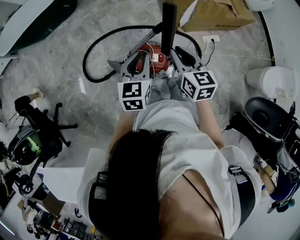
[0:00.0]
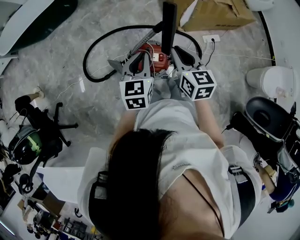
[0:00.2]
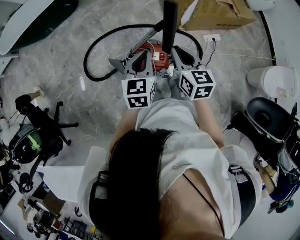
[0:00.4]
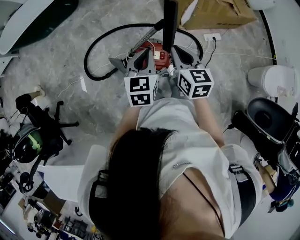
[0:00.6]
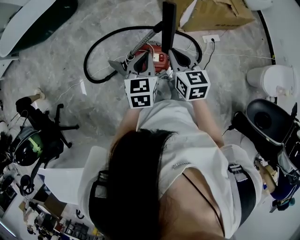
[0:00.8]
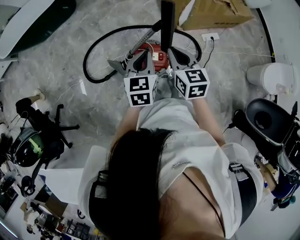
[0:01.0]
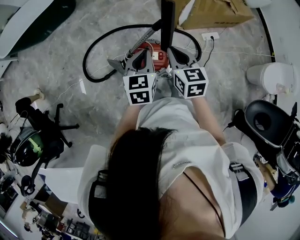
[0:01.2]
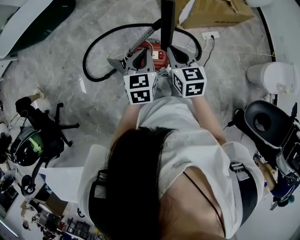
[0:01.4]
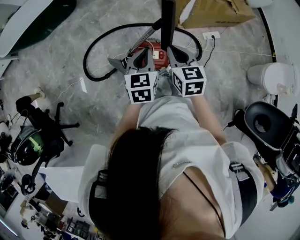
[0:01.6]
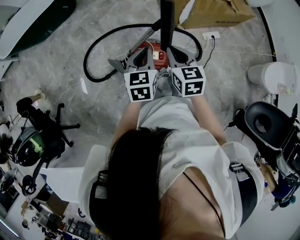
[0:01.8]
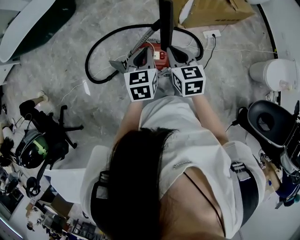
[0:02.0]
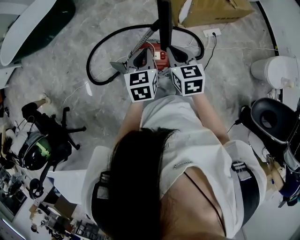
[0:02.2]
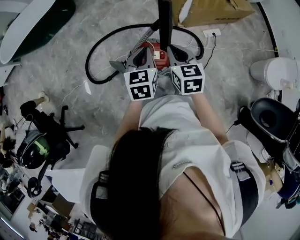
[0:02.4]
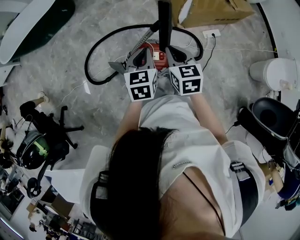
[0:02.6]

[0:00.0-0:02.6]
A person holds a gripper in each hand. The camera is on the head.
0:00.0 to 0:02.6: The grippers stay close to where they were, moving slightly.

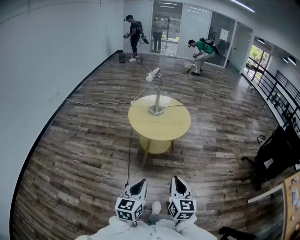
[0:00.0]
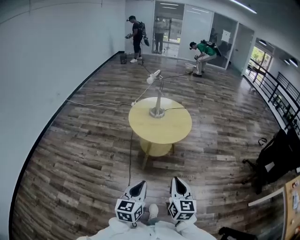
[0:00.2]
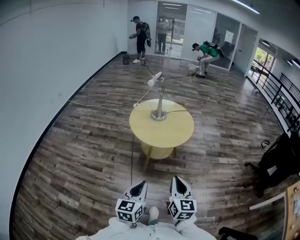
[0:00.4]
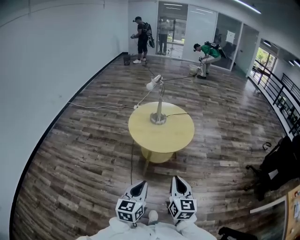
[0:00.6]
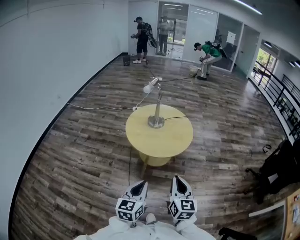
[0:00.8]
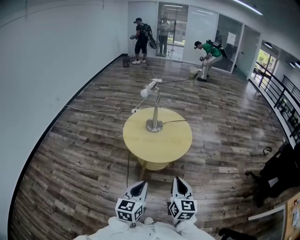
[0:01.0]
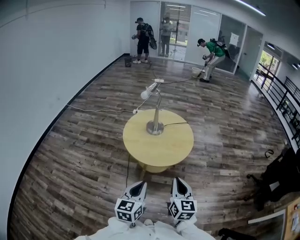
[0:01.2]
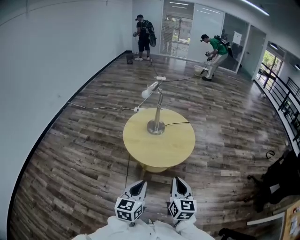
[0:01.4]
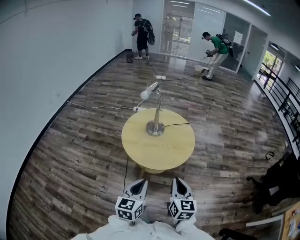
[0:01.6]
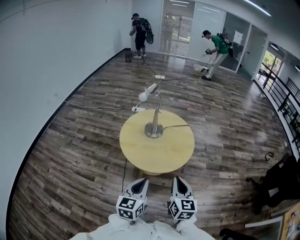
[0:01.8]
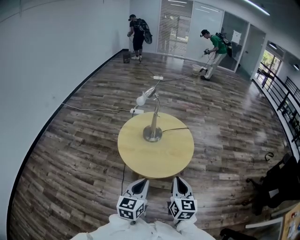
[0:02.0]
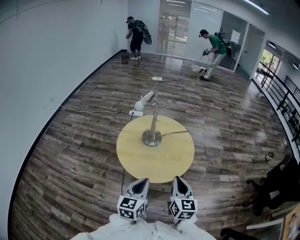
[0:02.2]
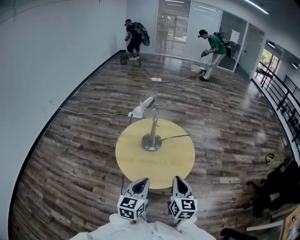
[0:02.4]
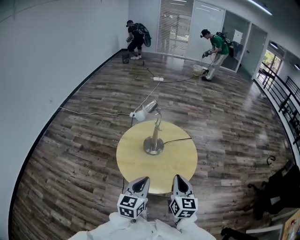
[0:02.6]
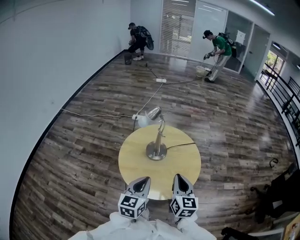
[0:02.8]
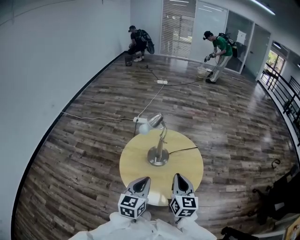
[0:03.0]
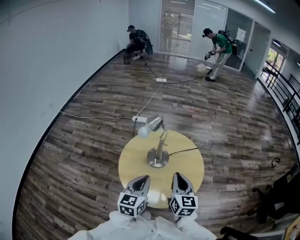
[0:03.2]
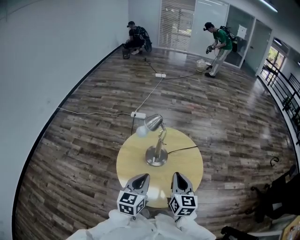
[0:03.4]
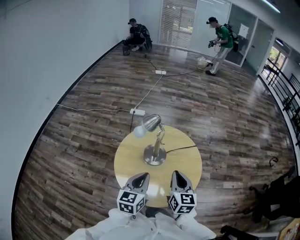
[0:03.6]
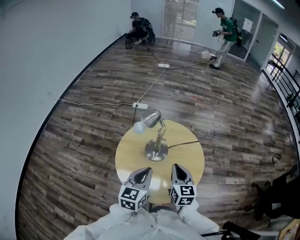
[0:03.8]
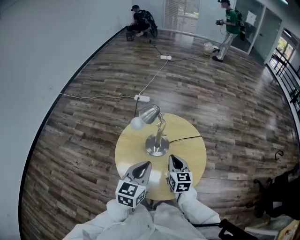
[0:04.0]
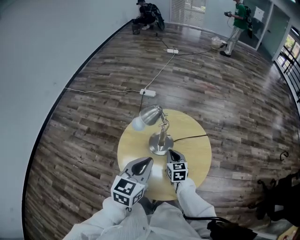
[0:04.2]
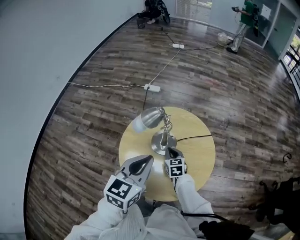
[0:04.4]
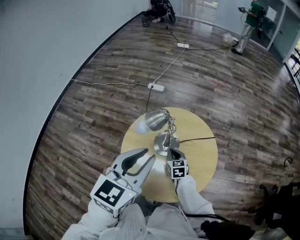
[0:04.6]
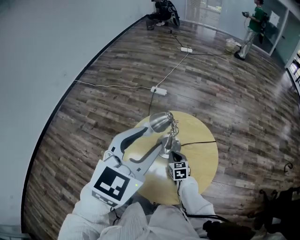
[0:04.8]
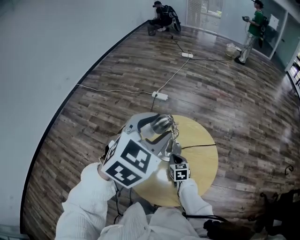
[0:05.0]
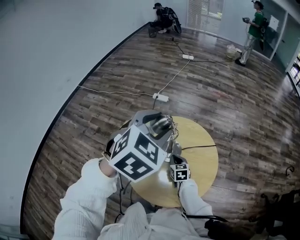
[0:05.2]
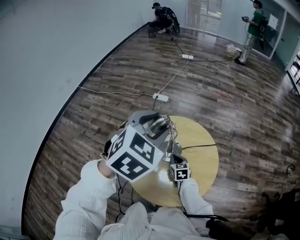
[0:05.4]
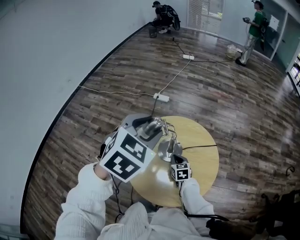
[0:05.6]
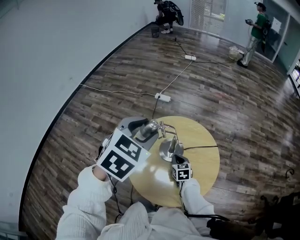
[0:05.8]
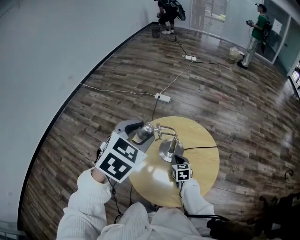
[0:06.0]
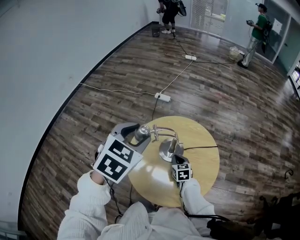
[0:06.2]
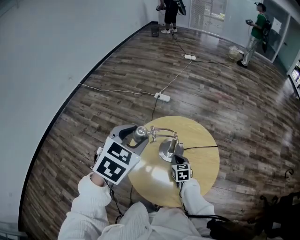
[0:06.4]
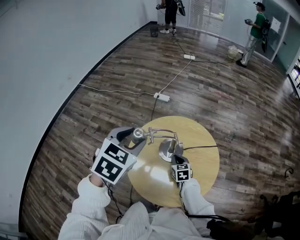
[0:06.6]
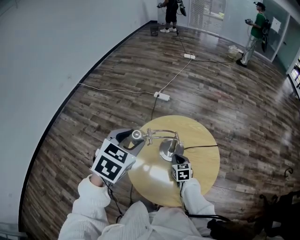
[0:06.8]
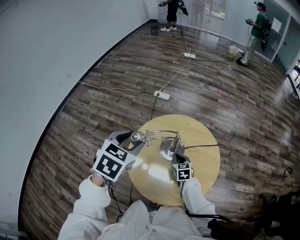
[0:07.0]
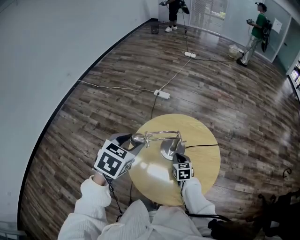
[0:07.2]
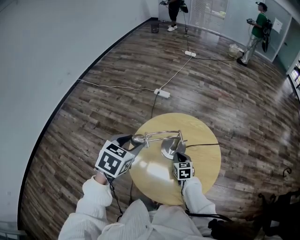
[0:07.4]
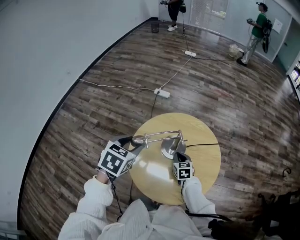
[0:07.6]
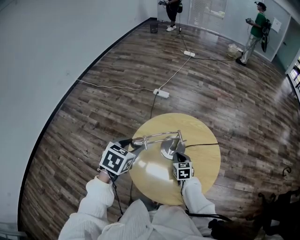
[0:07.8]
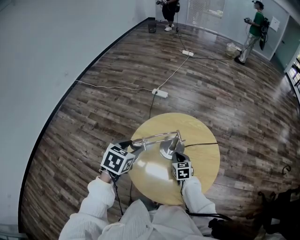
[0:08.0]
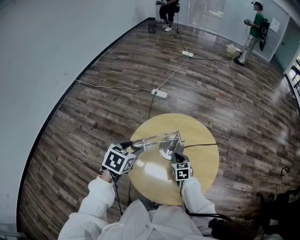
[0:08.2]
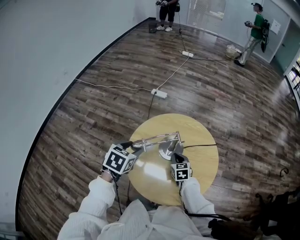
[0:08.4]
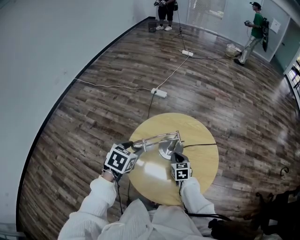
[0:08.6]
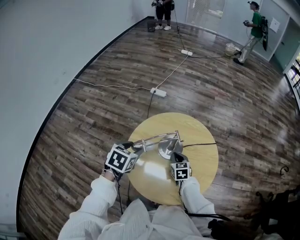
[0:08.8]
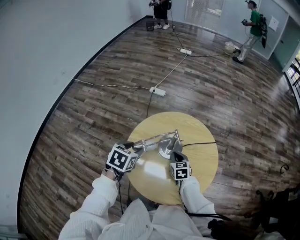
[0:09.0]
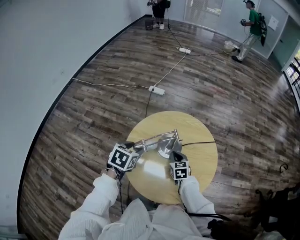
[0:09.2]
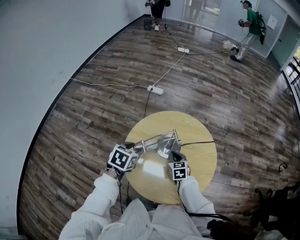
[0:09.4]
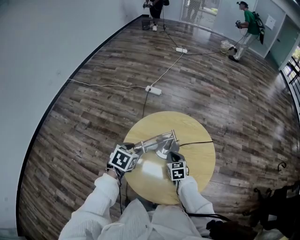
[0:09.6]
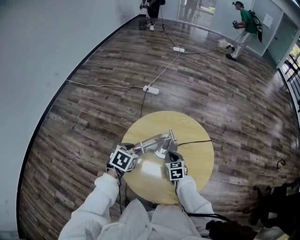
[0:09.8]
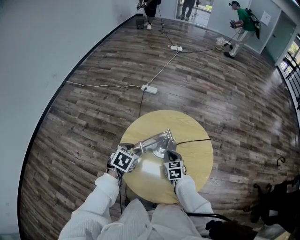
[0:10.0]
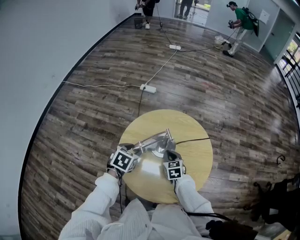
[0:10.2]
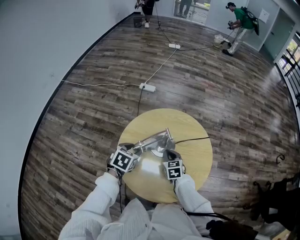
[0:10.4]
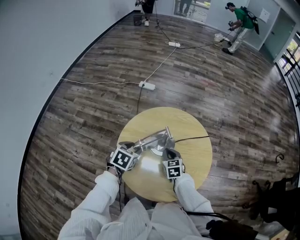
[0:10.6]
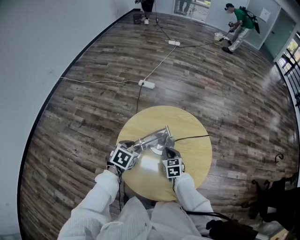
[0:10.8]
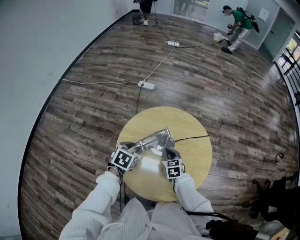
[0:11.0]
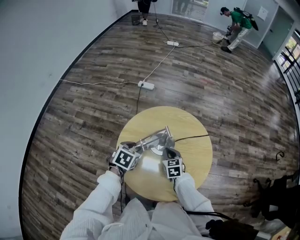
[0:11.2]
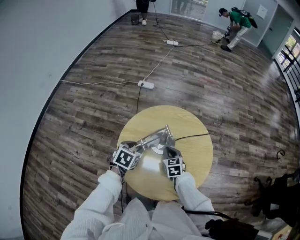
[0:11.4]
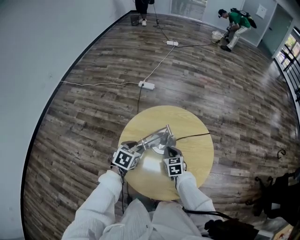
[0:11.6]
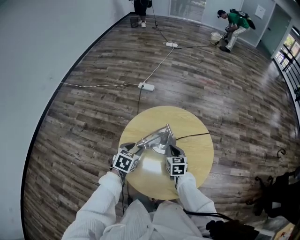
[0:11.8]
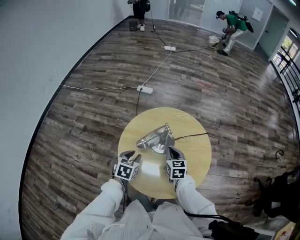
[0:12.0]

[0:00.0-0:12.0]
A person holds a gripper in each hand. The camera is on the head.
0:00.0 to 0:01.6: The grippers both shift forward by roughly 30 cm.
0:01.6 to 0:03.0: Both grippers move forward, about 30 cm.
0:03.0 to 0:04.4: The right gripper is displaced downward and forward by about 30 cm, and swivels some 30 degrees. The left gripper travels forward by roughly 10 cm.
0:04.4 to 0:06.0: The left gripper goes some 15 cm upward, forward and to the left, rotates some 30 degrees, and opens up.
0:06.0 to 0:07.6: The left gripper heads downward and to the left, covering roughly 15 cm.
0:07.6 to 0:09.0: The left gripper travels downward by roughly 10 cm.
0:09.0 to 0:10.4: The left gripper moves downward, roughly 5 cm.
0:10.4 to 0:12.0: The left gripper changes place by approximately 5 cm. Meanwhile the right gripper moves upward, about 5 cm.

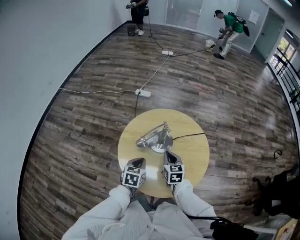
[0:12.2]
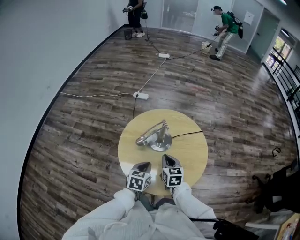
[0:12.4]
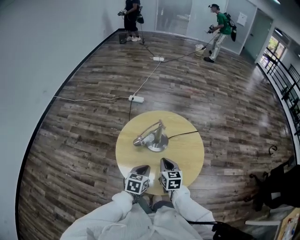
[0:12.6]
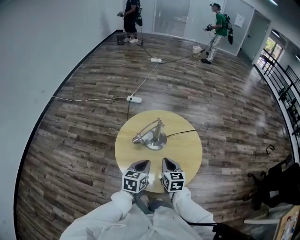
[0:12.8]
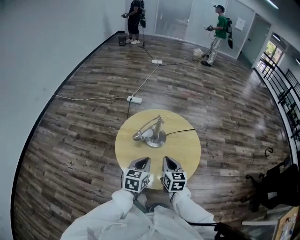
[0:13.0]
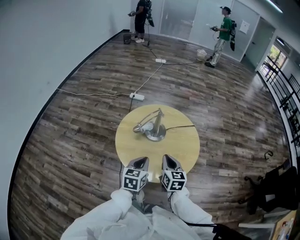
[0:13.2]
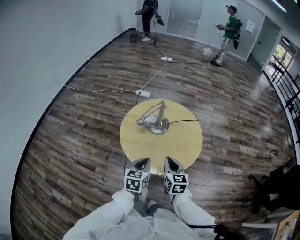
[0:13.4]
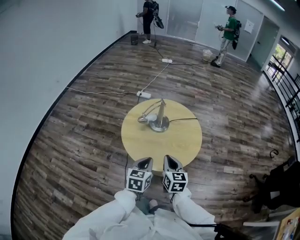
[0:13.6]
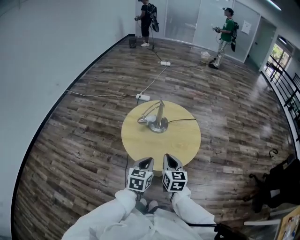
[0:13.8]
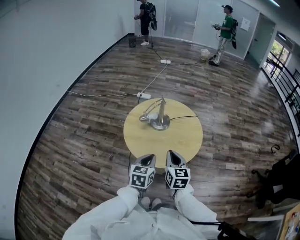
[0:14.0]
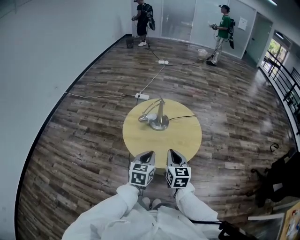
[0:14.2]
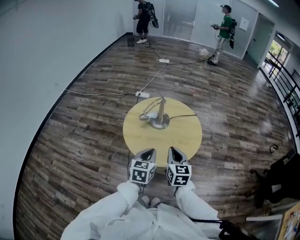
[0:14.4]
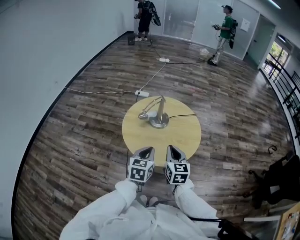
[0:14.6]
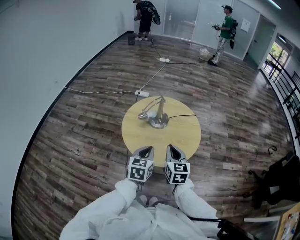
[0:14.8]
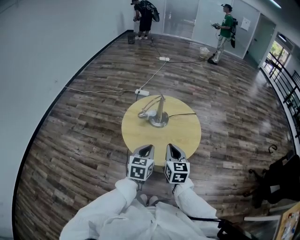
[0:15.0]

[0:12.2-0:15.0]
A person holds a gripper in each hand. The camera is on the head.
0:12.2 to 0:13.6: The left gripper goes some 20 cm backward and upward, while the right gripper heads backward, covering roughly 25 cm.
0:13.6 to 0:15.0: The grippers stay close to where they were, moving slightly.

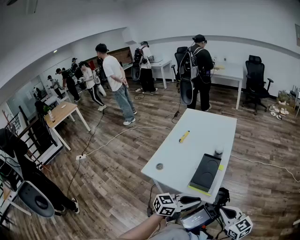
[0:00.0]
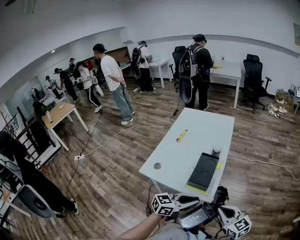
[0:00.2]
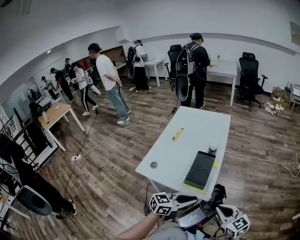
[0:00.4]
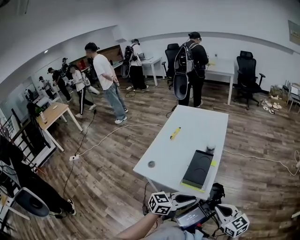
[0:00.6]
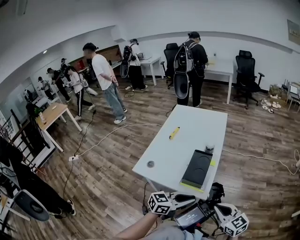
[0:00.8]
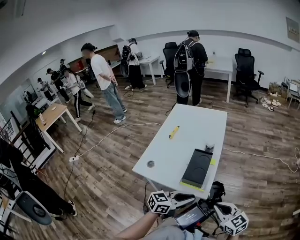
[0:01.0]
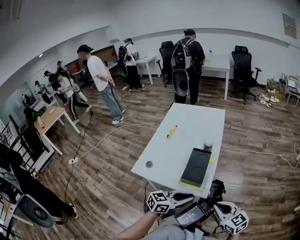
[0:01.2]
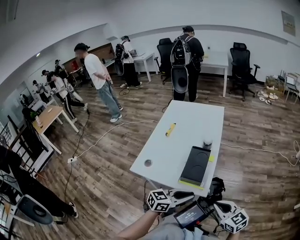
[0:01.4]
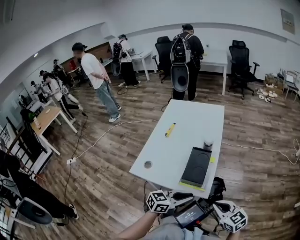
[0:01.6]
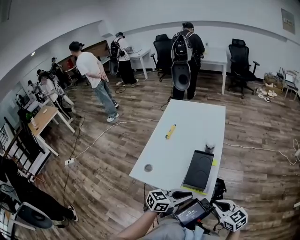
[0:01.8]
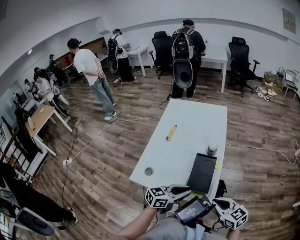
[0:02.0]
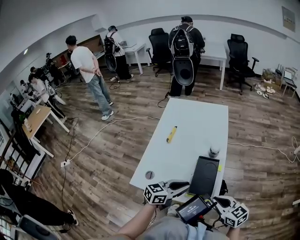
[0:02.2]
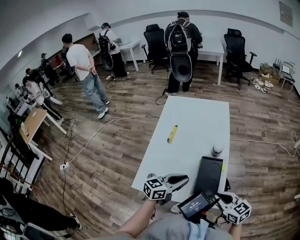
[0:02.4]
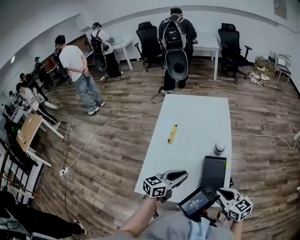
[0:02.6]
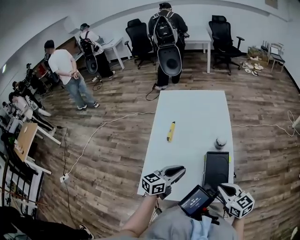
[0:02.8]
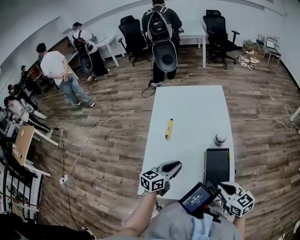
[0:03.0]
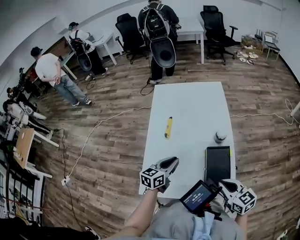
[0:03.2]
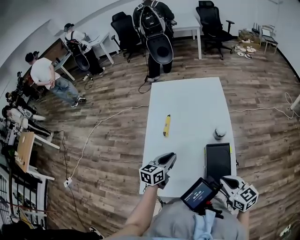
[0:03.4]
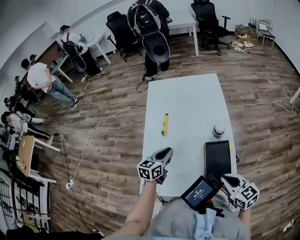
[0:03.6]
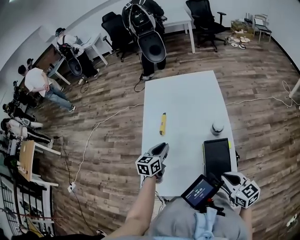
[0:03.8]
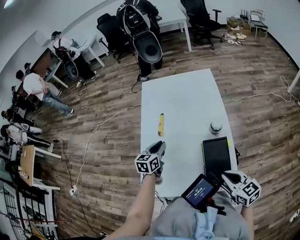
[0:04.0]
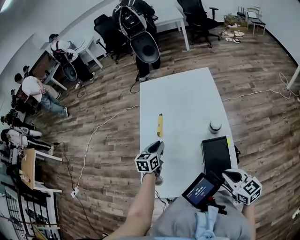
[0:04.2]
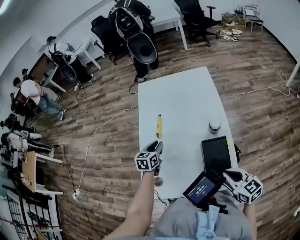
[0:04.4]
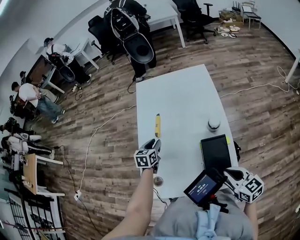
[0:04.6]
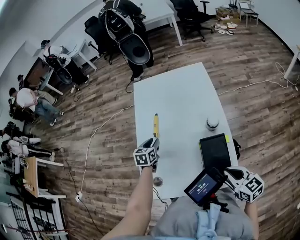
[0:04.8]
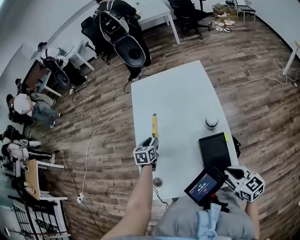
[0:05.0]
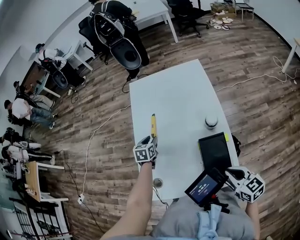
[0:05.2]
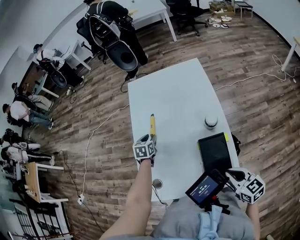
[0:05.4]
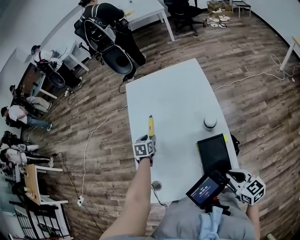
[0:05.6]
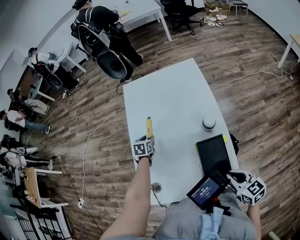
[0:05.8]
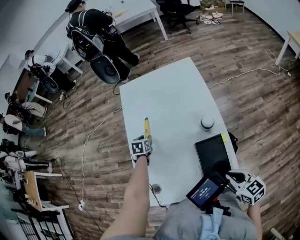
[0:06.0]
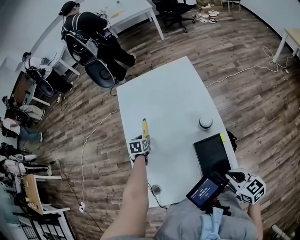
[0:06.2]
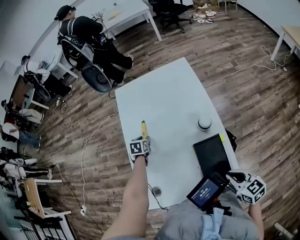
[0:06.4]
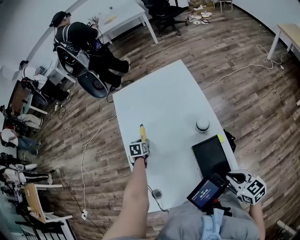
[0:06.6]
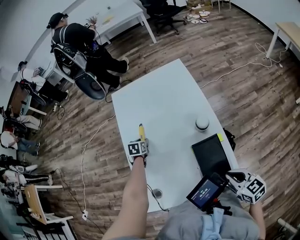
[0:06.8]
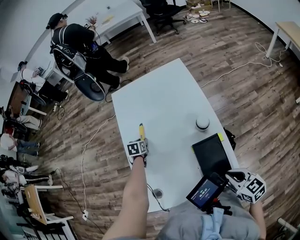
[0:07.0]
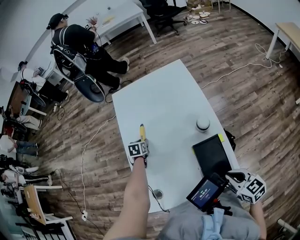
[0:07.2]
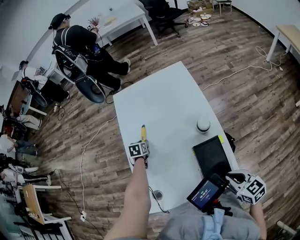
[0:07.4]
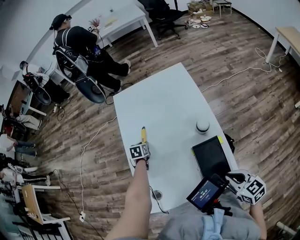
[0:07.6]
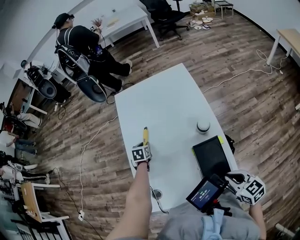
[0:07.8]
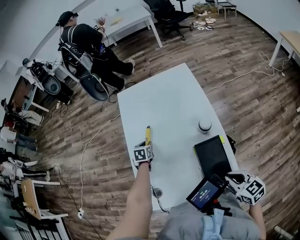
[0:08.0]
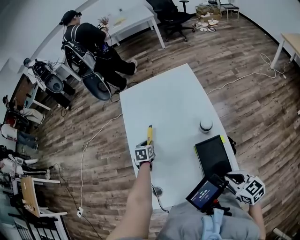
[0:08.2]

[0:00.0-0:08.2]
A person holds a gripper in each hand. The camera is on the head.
0:00.0 to 0:01.6: The grippers move only a little.
0:01.6 to 0:03.2: The right gripper shifts roughly 20 cm to the left and forward, while the left gripper travels to the left and forward by about 35 cm.
0:03.2 to 0:05.0: The left gripper shifts approximately 20 cm forward, downward and to the left, and turns by about 30 degrees.
0:05.0 to 0:06.6: The left gripper goes about 10 cm forward and downward.
0:06.6 to 0:08.2: The grippers make only small movements.
